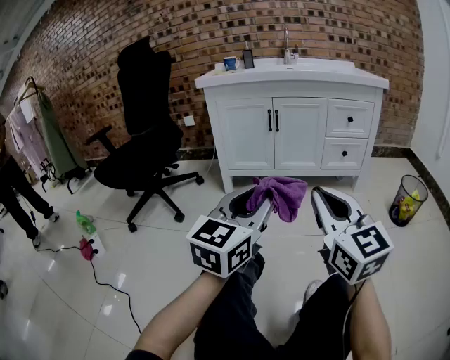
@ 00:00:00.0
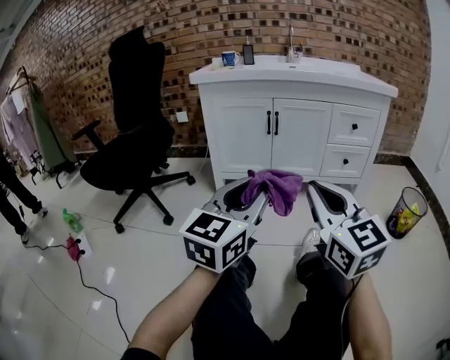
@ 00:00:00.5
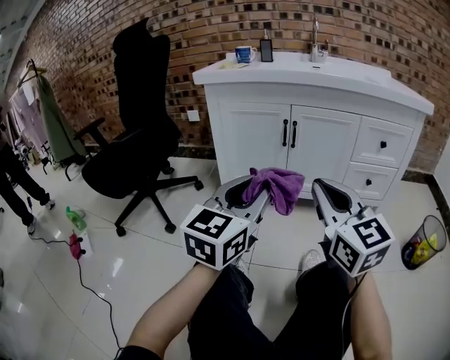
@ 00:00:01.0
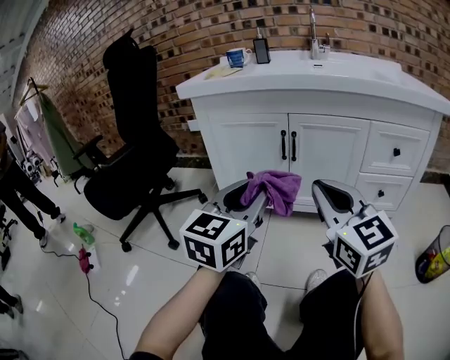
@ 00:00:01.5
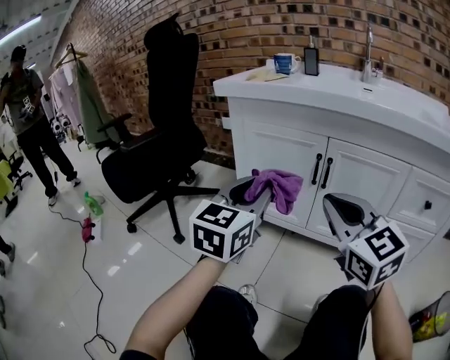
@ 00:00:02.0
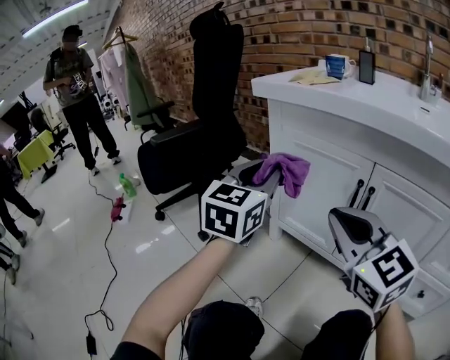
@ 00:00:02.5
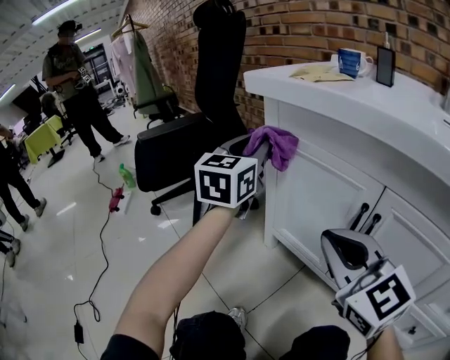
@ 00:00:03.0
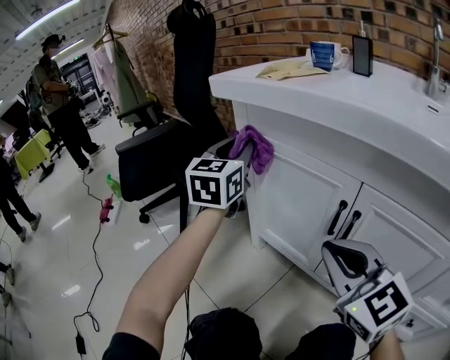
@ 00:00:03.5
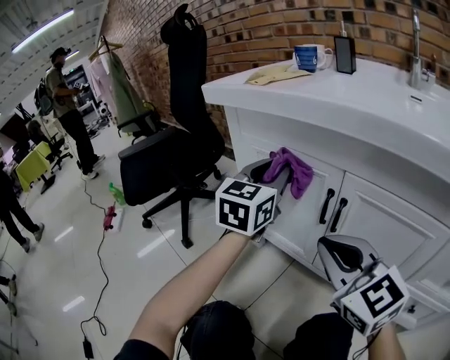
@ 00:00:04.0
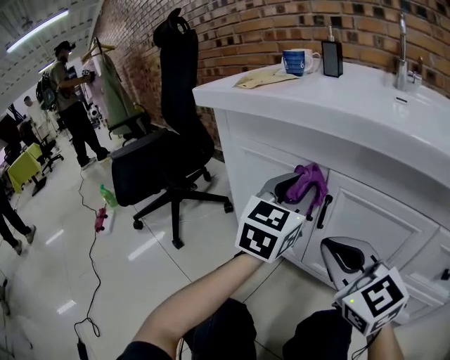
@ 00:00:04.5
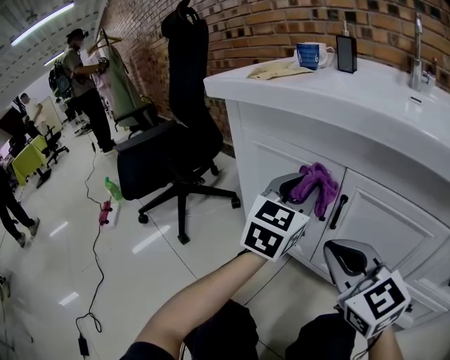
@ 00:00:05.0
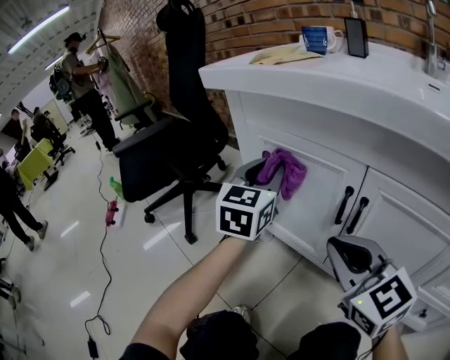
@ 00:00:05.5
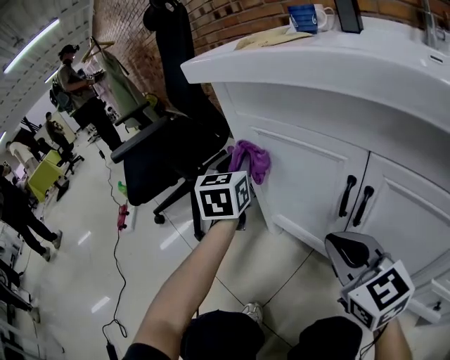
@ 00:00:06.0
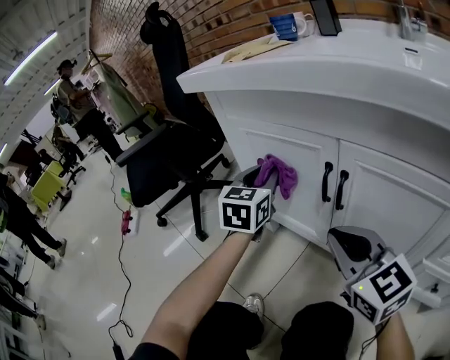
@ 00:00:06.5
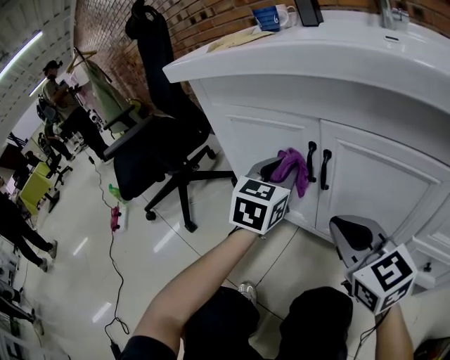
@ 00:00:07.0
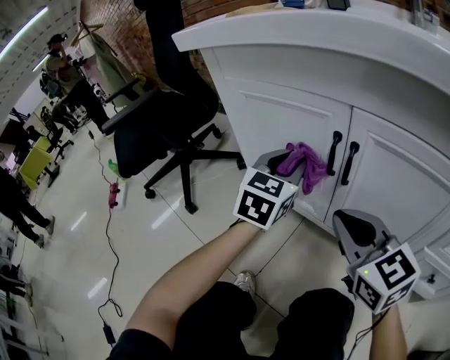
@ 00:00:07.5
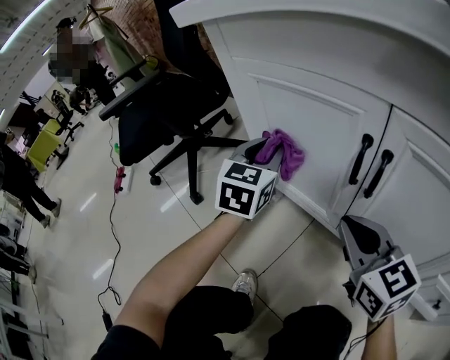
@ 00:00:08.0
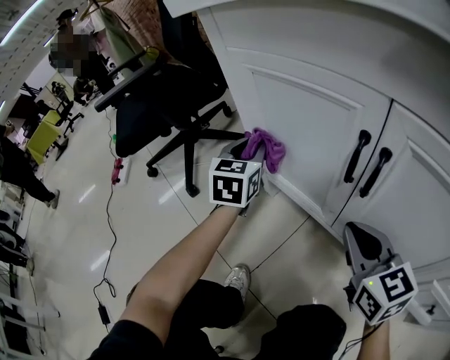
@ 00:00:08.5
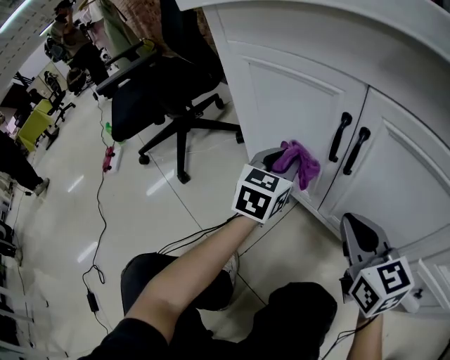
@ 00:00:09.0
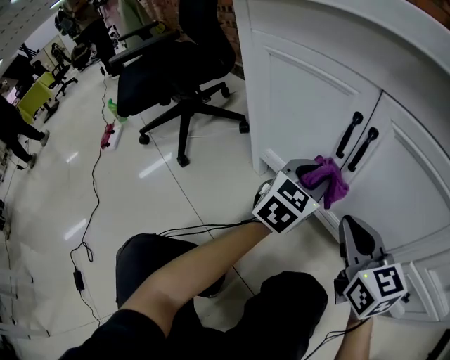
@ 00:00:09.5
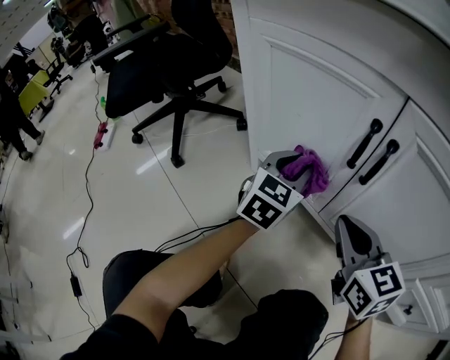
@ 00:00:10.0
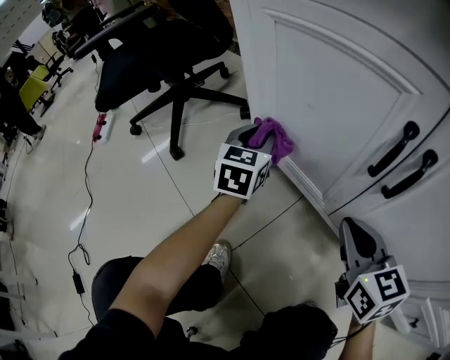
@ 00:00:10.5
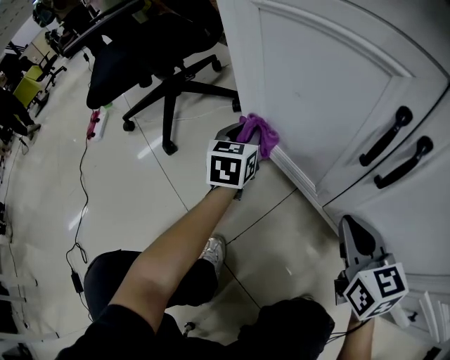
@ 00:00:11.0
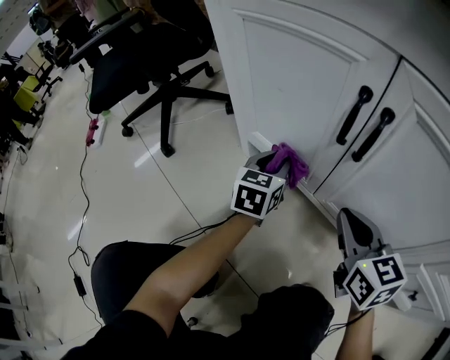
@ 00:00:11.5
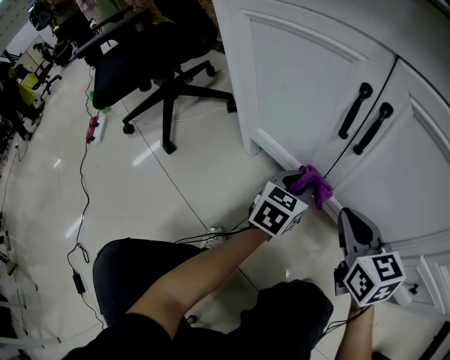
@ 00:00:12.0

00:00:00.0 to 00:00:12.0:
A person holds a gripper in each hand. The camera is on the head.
00:00:00.0 to 00:00:02.0: Both grippers are carried forward, some 40 cm. The left gripper rotates roughly 30 degrees. The right gripper changes its angle by some 30 degrees.
00:00:02.0 to 00:00:04.0: The left gripper ends up some 20 cm from where it was. Meanwhile the right gripper moves roughly 15 cm, and swivels roughly 20 degrees.
00:00:04.0 to 00:00:06.0: The right gripper shifts about 10 cm downward and forward; the left gripper goes approximately 15 cm to the left, forward and downward, and turns by roughly 30 degrees.
00:00:06.0 to 00:00:08.0: The right gripper heads downward, covering roughly 5 cm, and moves approximately 10 cm backward and comes back. The left gripper shifts some 10 cm downward and to the right.
00:00:08.0 to 00:00:10.0: The left gripper moves left and right over roughly 20 cm, changing direction 2 times.
00:00:10.0 to 00:00:12.0: The right gripper moves approximately 5 cm; the left gripper goes some 10 cm downward and backward, and moves roughly 15 cm to the left and comes back.

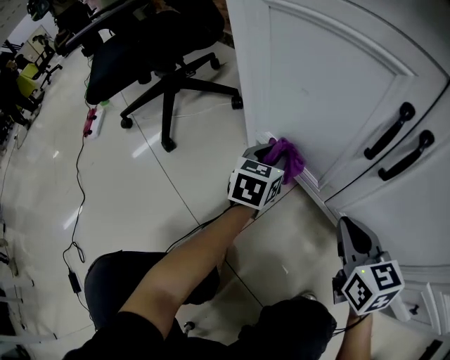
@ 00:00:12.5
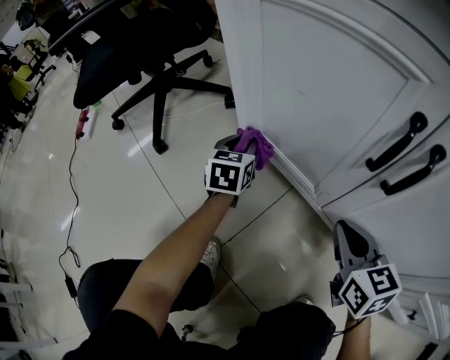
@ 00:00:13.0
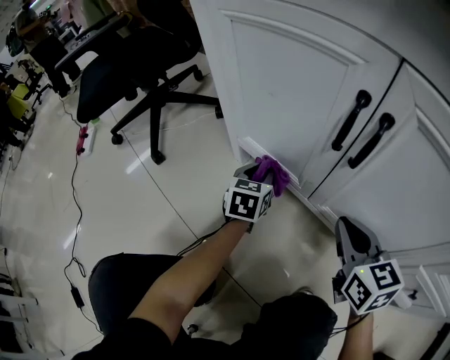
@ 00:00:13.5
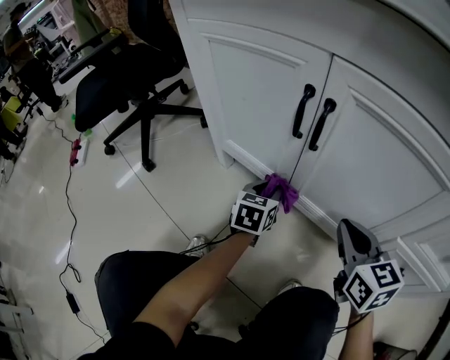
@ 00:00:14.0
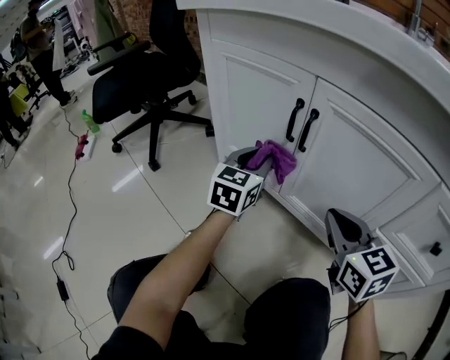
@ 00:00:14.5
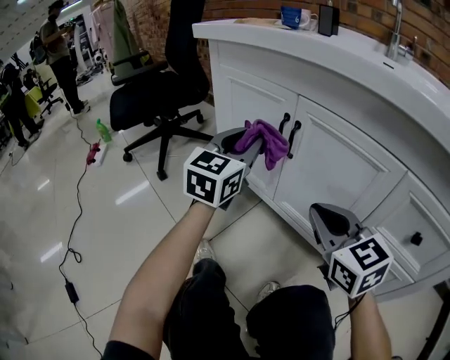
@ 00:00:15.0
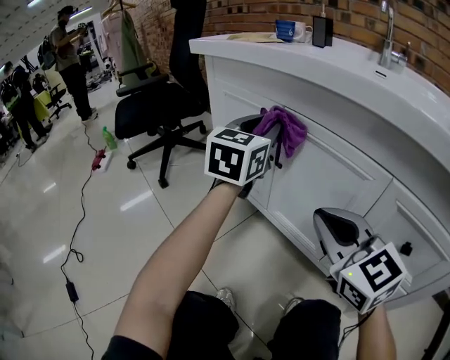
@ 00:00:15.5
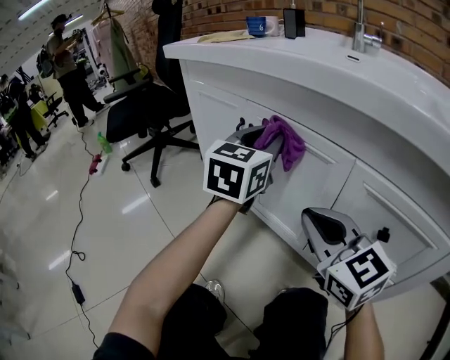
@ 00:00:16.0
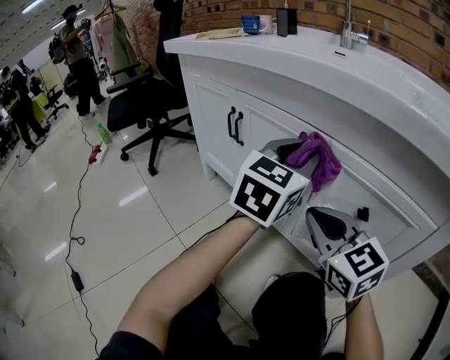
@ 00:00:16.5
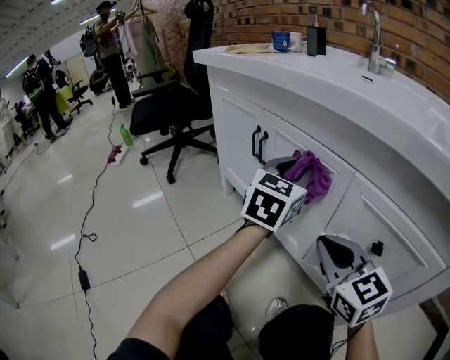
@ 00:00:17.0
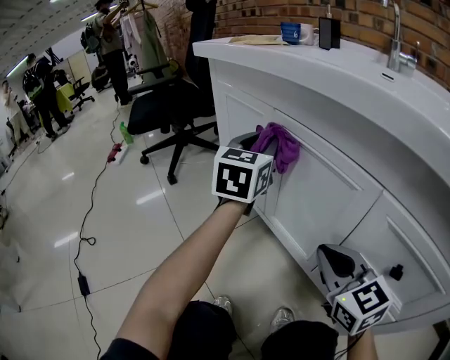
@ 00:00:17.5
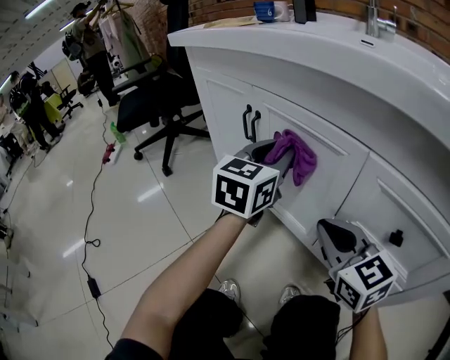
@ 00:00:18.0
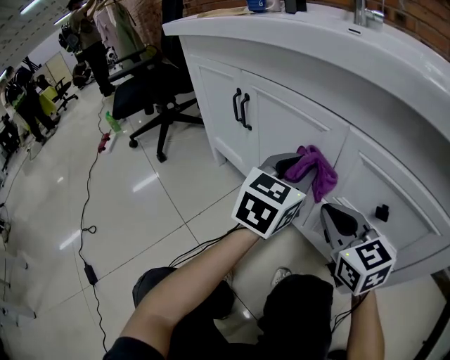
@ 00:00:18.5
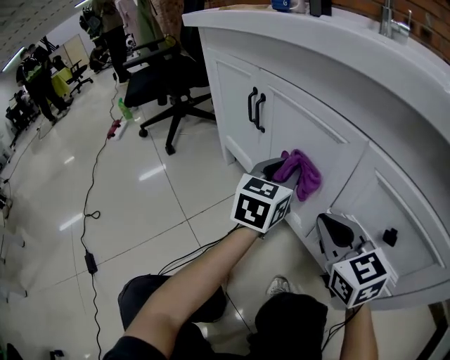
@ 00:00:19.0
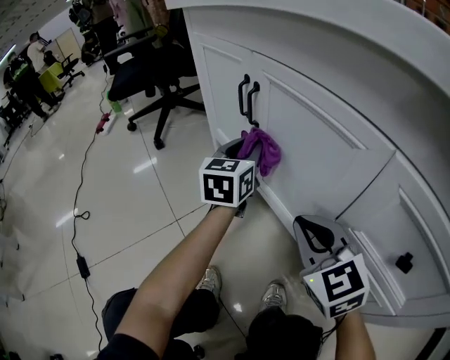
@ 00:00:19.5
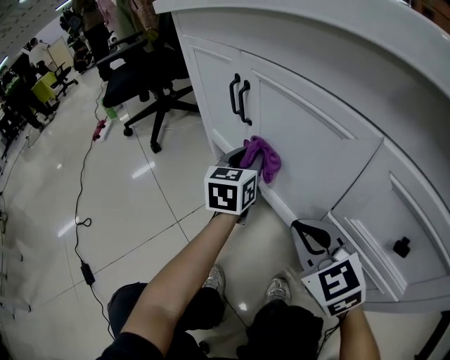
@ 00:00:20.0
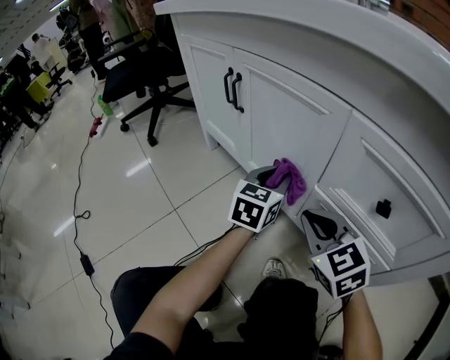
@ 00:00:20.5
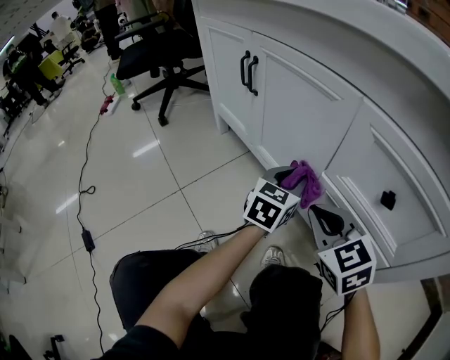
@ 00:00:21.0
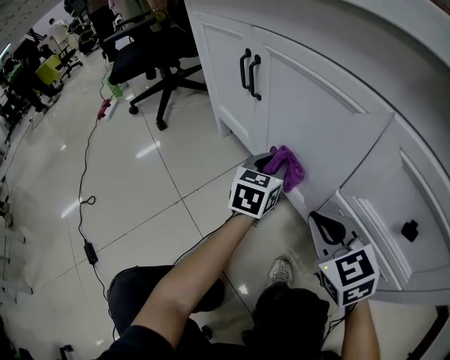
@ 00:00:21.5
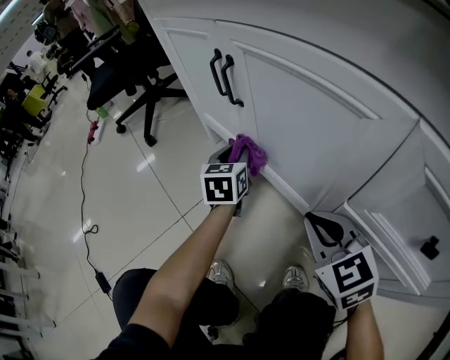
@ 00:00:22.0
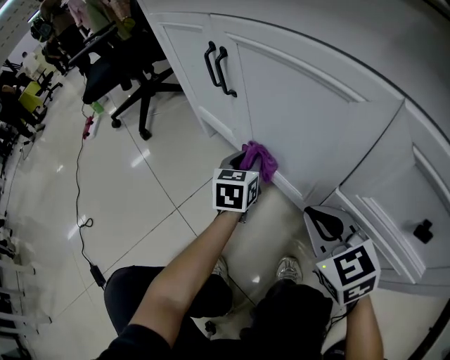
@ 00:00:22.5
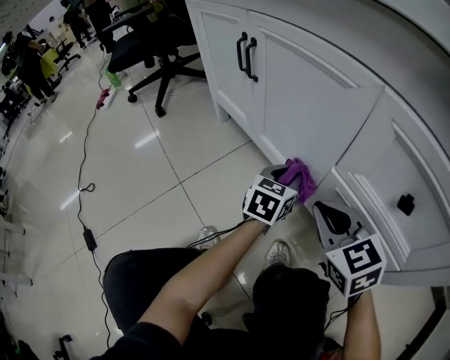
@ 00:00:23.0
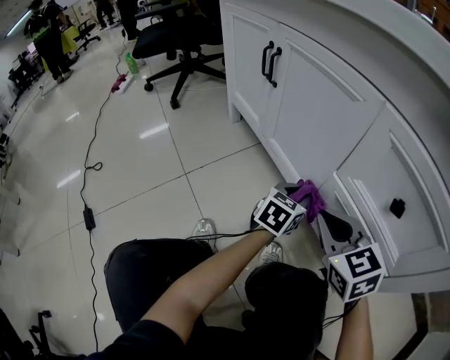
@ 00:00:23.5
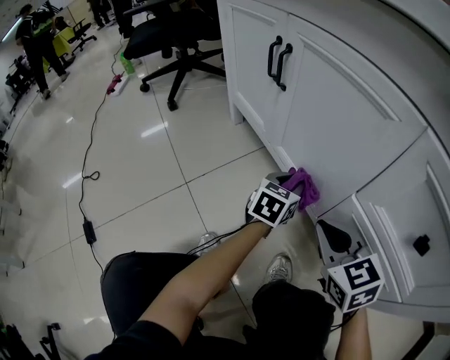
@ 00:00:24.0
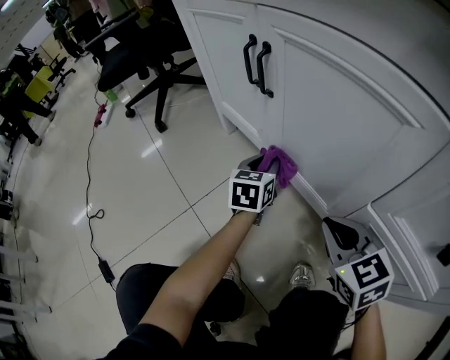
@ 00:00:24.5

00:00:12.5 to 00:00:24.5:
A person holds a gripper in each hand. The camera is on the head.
00:00:12.5 to 00:00:14.5: Both grippers travel together upward, backward and to the right, roughly 20 cm.
00:00:14.5 to 00:00:16.5: The right gripper is displaced backward, to the right and upward by about 20 cm. Meanwhile the left gripper travels to the right, upward and backward by about 35 cm.
00:00:16.5 to 00:00:18.5: The left gripper goes roughly 10 cm downward, and reaches roughly 20 cm to the left, then returns. The right gripper goes approximately 5 cm downward.
00:00:18.5 to 00:00:20.5: The right gripper shifts approximately 5 cm downward, while the left gripper is displaced downward by about 15 cm, and reaches approximately 15 cm forward, then returns.
00:00:20.5 to 00:00:22.5: The right gripper changes place by some 5 cm, while the left gripper goes forward and backward, roughly 20 cm each way, reversing 2 times.
00:00:22.5 to 00:00:24.5: The left gripper travels backward and back again, some 15 cm each way. Meanwhile the right gripper travels backward and back again, approximately 10 cm each way.

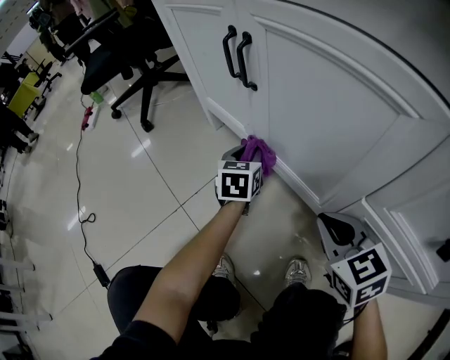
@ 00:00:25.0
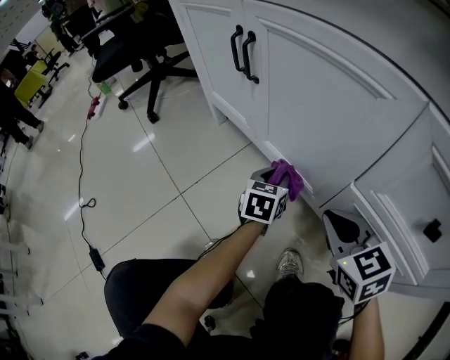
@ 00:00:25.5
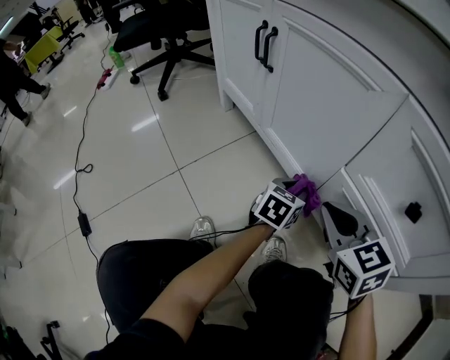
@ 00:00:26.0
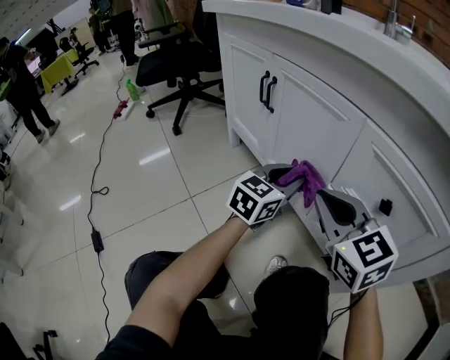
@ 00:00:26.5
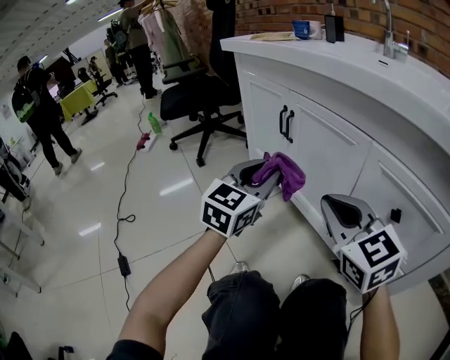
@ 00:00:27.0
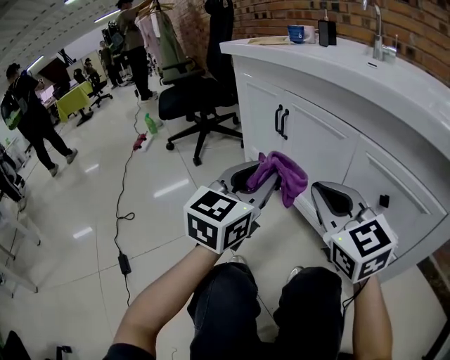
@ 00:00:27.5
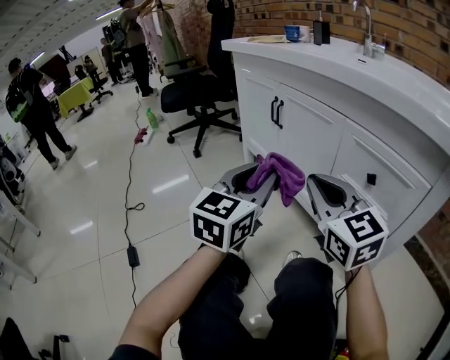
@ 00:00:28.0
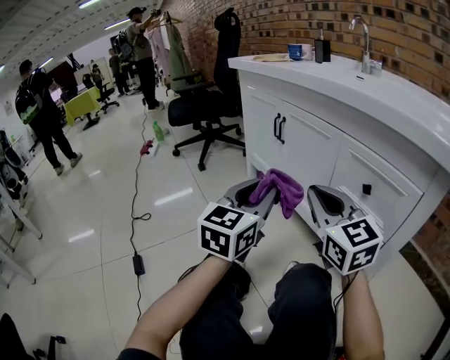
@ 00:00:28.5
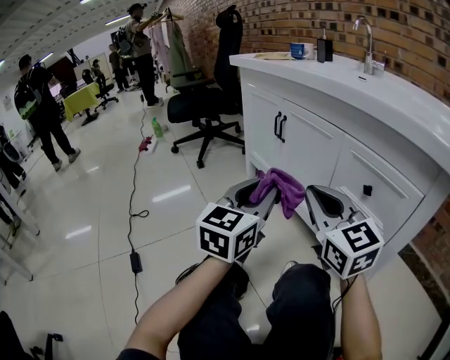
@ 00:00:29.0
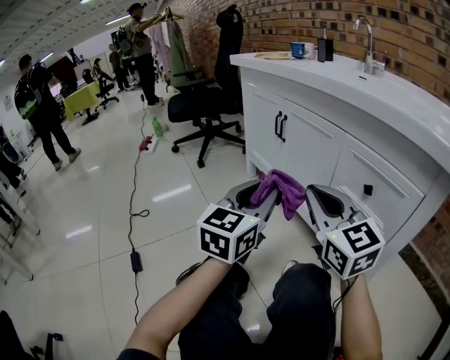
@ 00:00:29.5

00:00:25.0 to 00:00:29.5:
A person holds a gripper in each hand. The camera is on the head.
00:00:25.0 to 00:00:27.0: The left gripper travels upward and backward by approximately 35 cm, and rotates roughly 30 degrees; the right gripper travels upward by some 25 cm, and rotates roughly 30 degrees.
00:00:27.0 to 00:00:29.5: The left gripper is displaced backward by some 15 cm, while the right gripper heads backward, covering approximately 10 cm.
